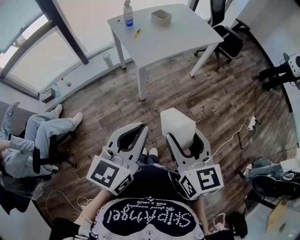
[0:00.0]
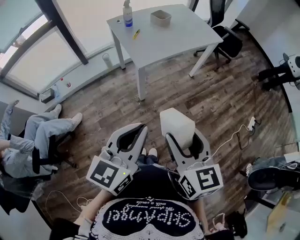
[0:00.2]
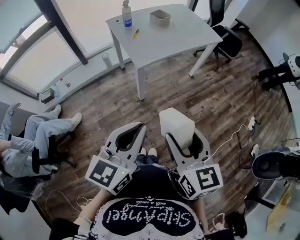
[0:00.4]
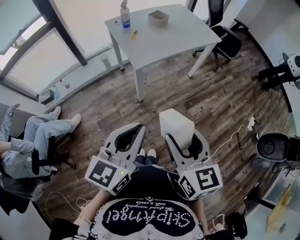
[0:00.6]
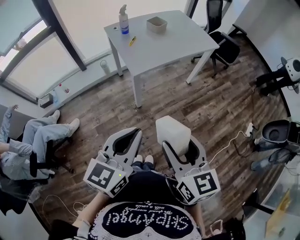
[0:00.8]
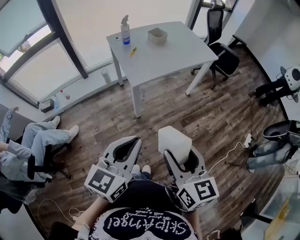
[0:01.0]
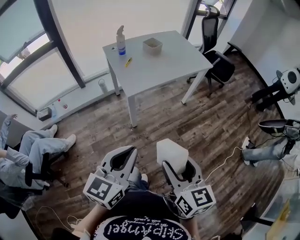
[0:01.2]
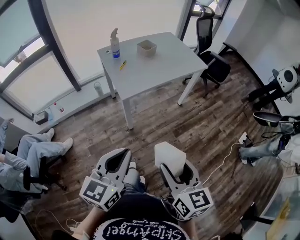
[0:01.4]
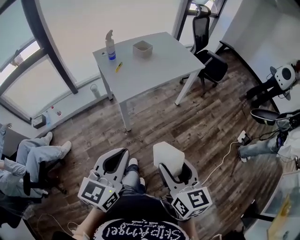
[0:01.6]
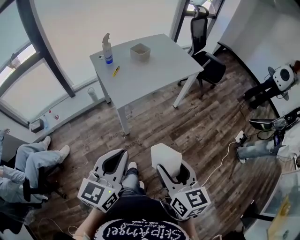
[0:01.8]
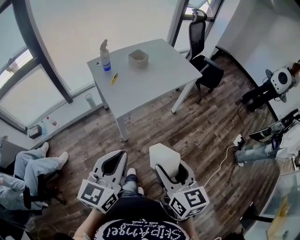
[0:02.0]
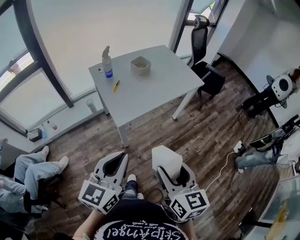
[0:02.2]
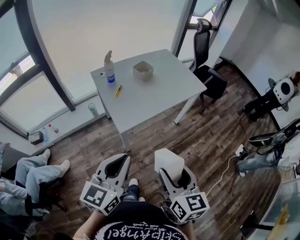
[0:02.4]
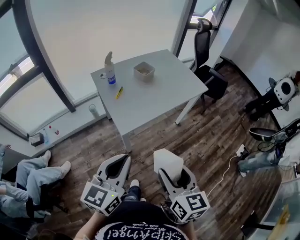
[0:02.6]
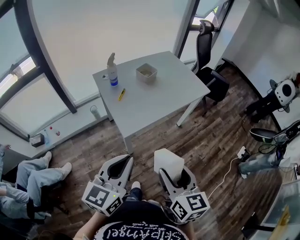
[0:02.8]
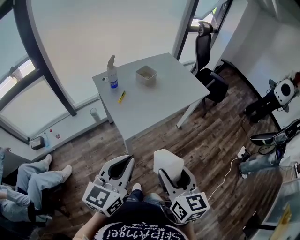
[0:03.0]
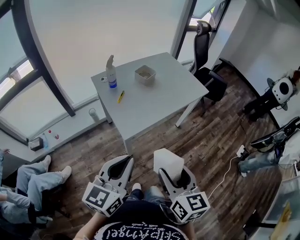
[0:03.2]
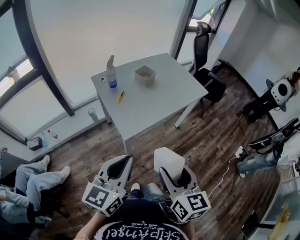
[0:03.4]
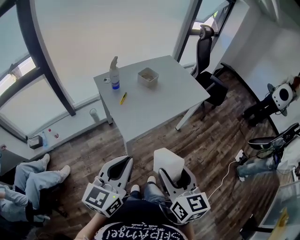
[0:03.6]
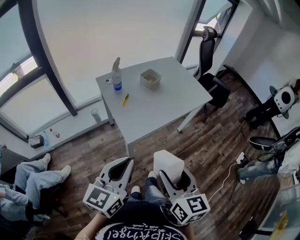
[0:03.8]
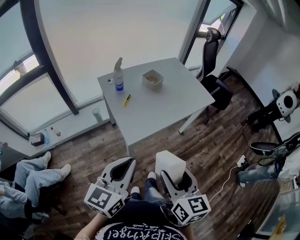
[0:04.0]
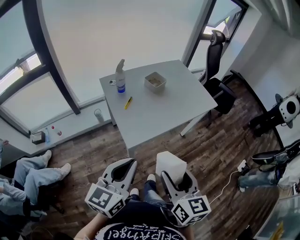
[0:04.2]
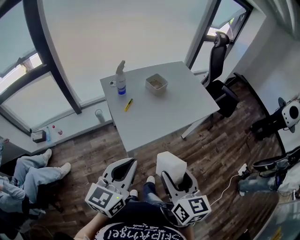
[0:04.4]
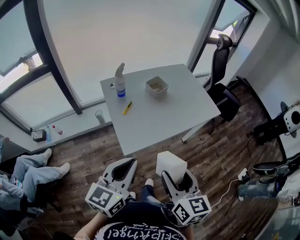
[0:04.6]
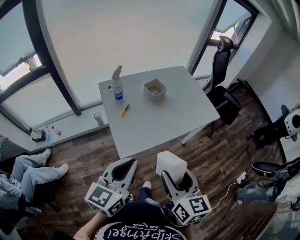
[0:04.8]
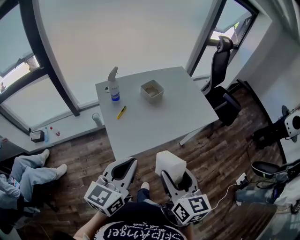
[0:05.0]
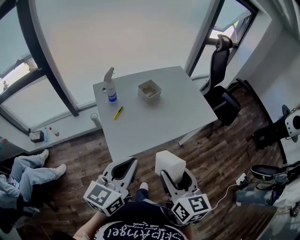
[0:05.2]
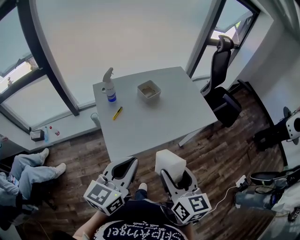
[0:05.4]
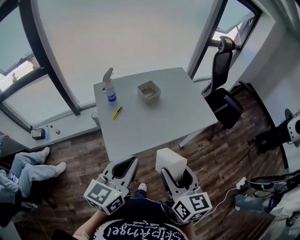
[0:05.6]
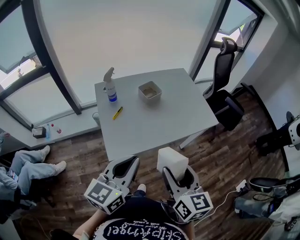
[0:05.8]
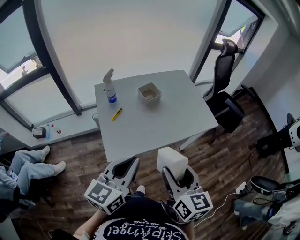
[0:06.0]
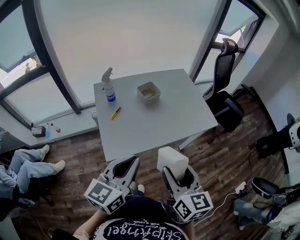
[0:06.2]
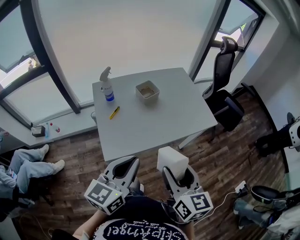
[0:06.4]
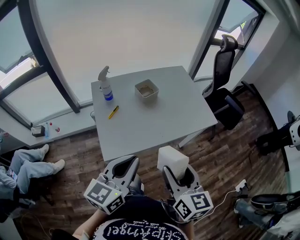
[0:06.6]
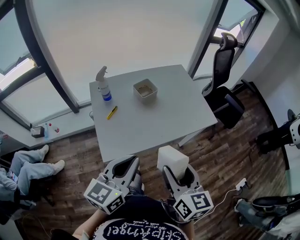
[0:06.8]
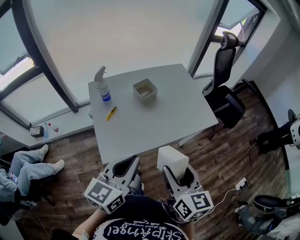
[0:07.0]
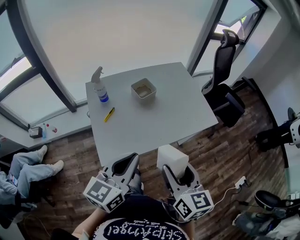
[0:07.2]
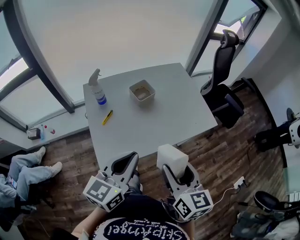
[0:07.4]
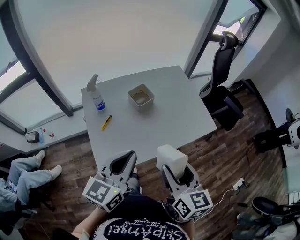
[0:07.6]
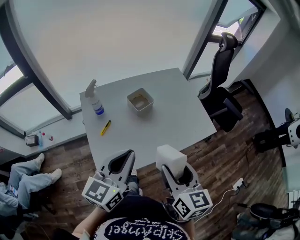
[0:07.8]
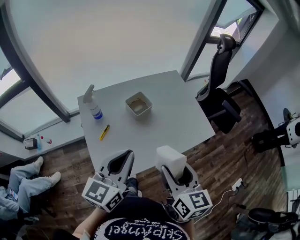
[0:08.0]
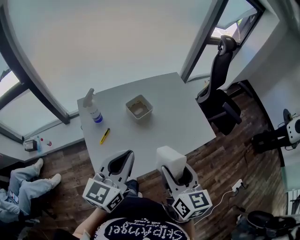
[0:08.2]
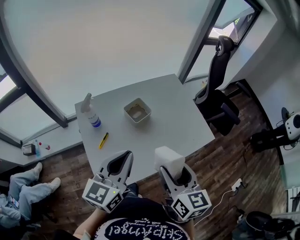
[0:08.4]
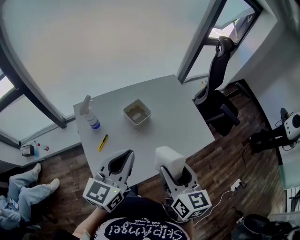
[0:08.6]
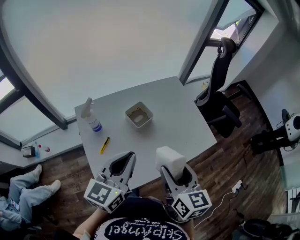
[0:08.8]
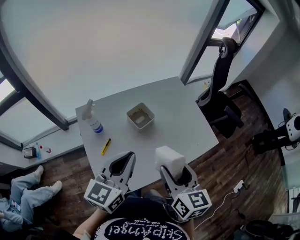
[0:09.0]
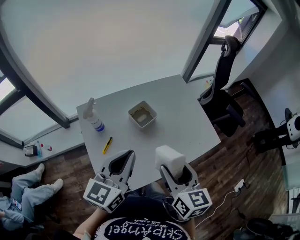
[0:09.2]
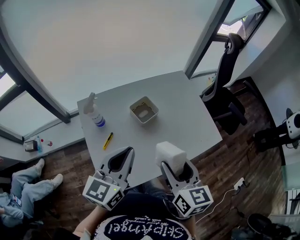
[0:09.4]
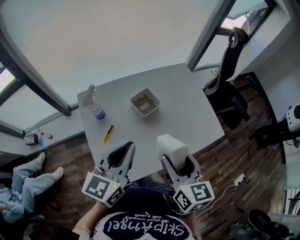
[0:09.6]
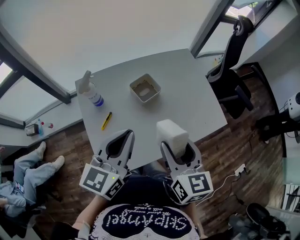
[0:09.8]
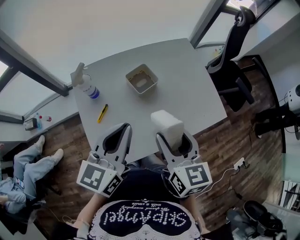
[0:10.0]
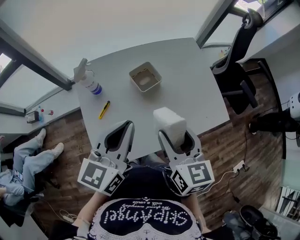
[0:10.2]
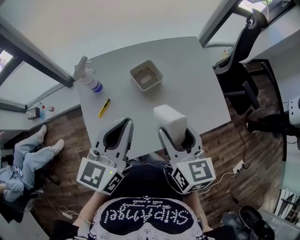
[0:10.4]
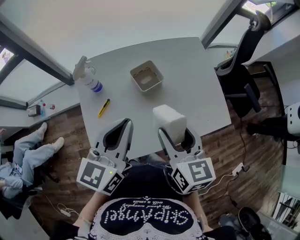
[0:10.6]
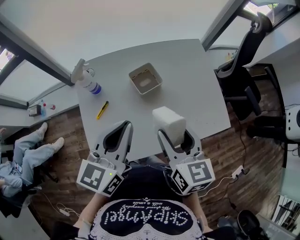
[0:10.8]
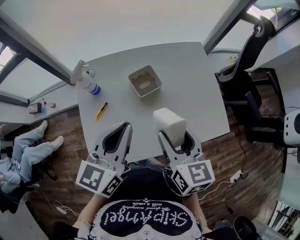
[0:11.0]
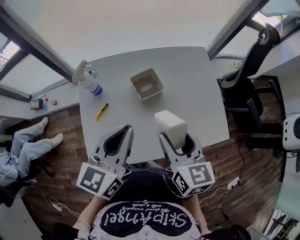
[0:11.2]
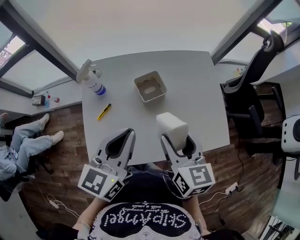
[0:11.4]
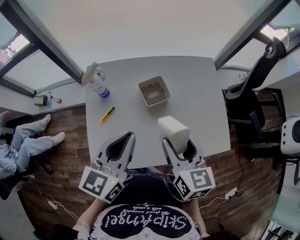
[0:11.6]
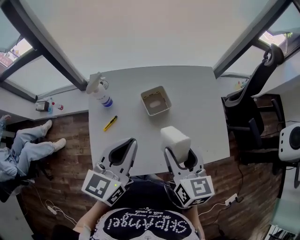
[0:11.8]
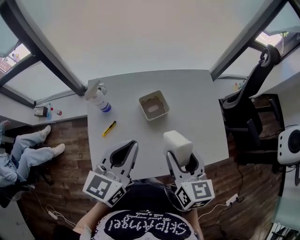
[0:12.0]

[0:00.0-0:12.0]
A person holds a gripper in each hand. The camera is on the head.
0:00.0 to 0:01.6: The left gripper moves roughly 5 cm. Meanwhile the right gripper is displaced to the right by some 10 cm.
0:01.6 to 0:03.0: The right gripper shifts roughly 15 cm forward and to the left; the left gripper goes some 15 cm forward.
0:03.0 to 0:04.4: Both grippers move forward, some 5 cm.
0:04.4 to 0:06.0: The right gripper travels forward and to the right by about 15 cm. The left gripper goes about 15 cm to the right and forward.
0:06.0 to 0:07.6: Both grippers move forward, roughly 10 cm.
0:07.6 to 0:09.0: Both grippers travel together forward, roughly 10 cm.
0:09.0 to 0:10.4: The right gripper ends up roughly 5 cm from where it was.
0:10.4 to 0:12.0: The right gripper changes place by about 5 cm.

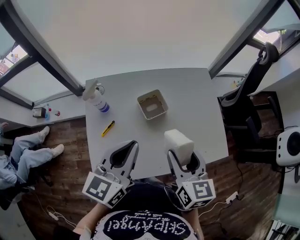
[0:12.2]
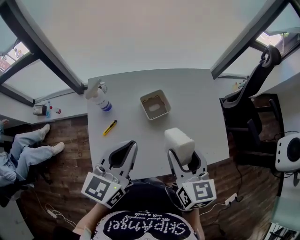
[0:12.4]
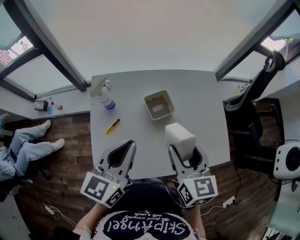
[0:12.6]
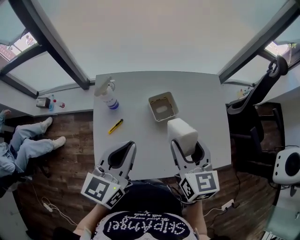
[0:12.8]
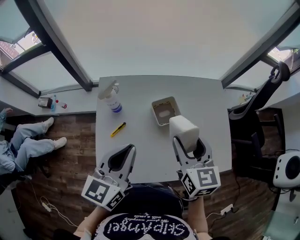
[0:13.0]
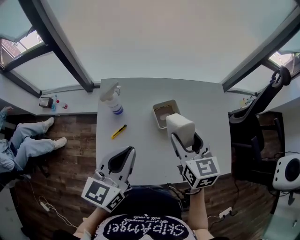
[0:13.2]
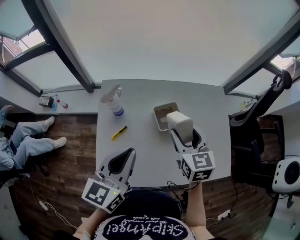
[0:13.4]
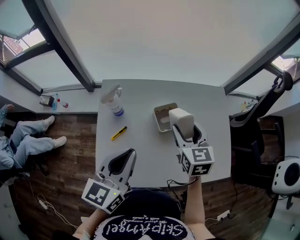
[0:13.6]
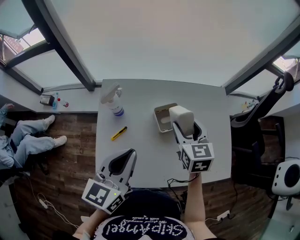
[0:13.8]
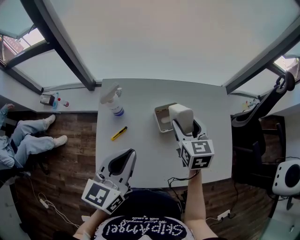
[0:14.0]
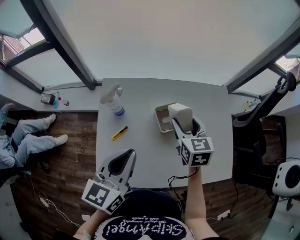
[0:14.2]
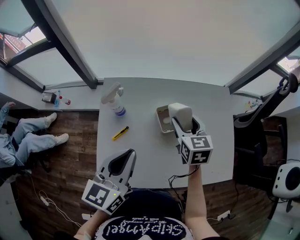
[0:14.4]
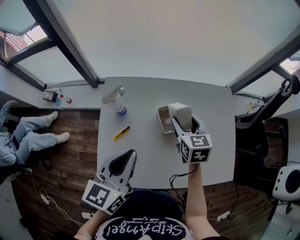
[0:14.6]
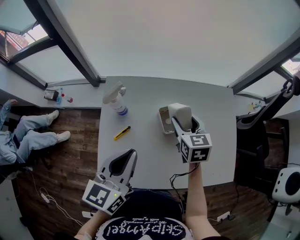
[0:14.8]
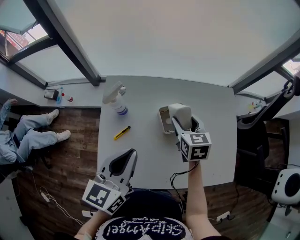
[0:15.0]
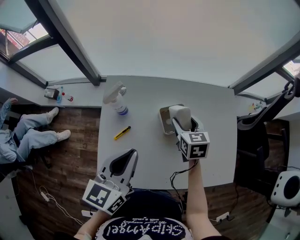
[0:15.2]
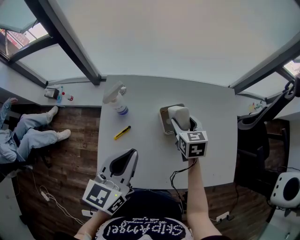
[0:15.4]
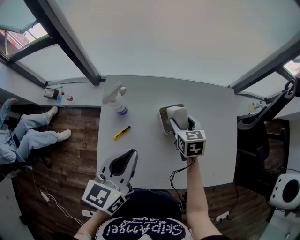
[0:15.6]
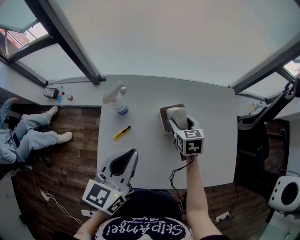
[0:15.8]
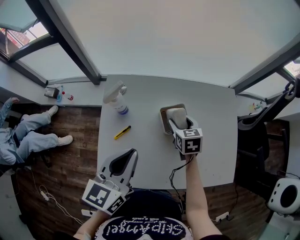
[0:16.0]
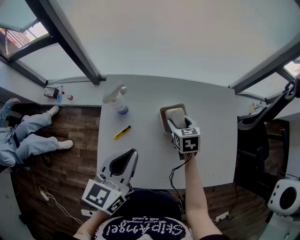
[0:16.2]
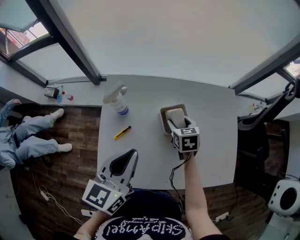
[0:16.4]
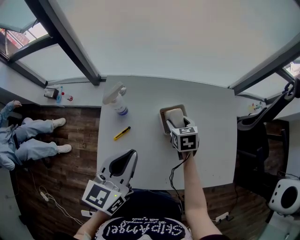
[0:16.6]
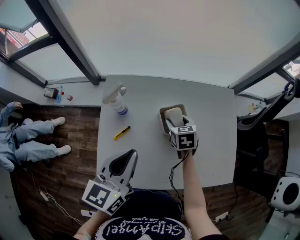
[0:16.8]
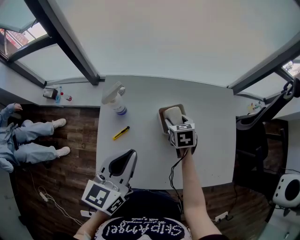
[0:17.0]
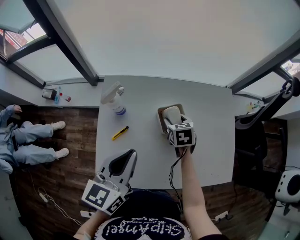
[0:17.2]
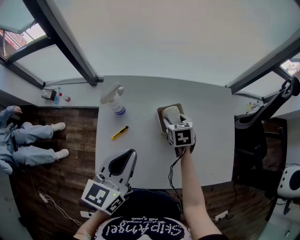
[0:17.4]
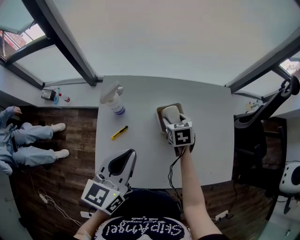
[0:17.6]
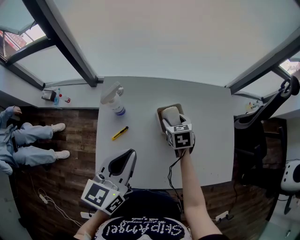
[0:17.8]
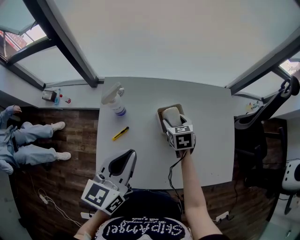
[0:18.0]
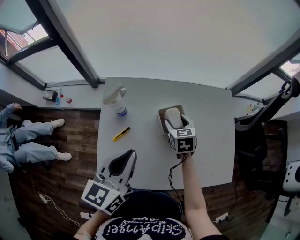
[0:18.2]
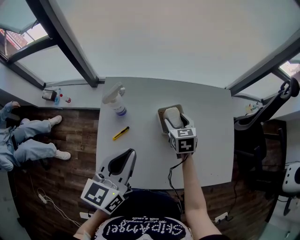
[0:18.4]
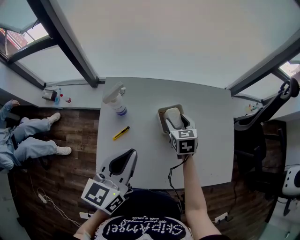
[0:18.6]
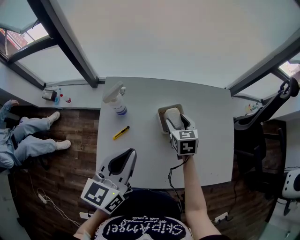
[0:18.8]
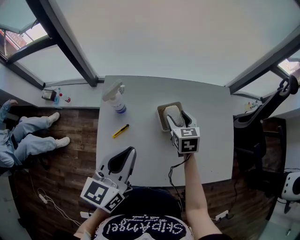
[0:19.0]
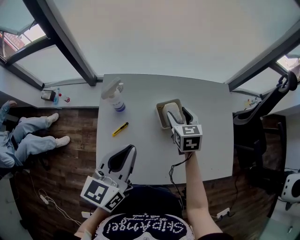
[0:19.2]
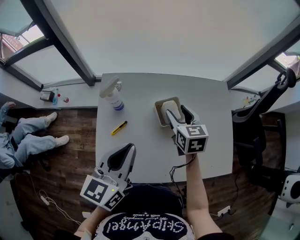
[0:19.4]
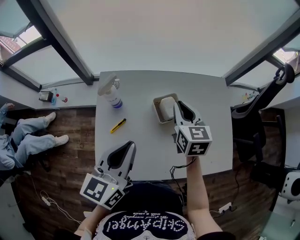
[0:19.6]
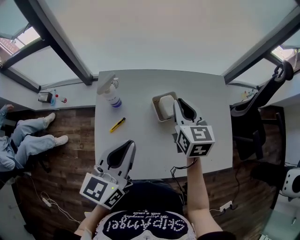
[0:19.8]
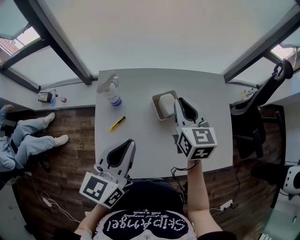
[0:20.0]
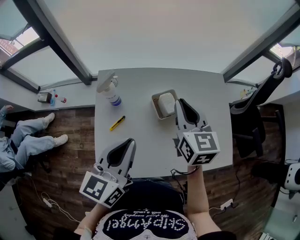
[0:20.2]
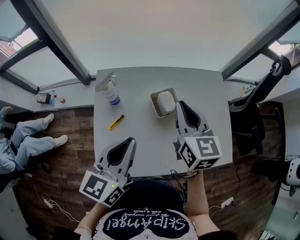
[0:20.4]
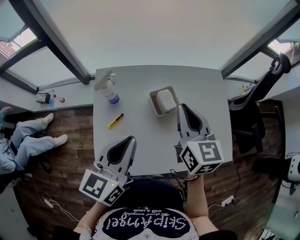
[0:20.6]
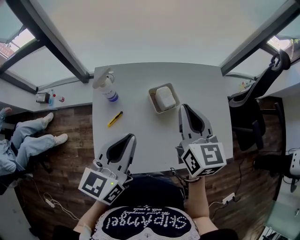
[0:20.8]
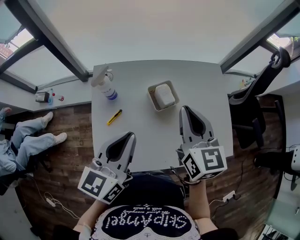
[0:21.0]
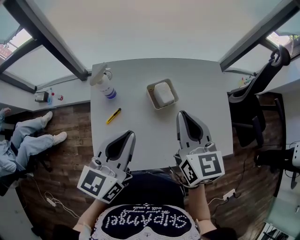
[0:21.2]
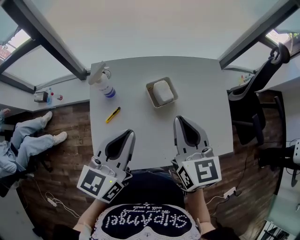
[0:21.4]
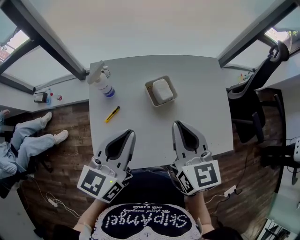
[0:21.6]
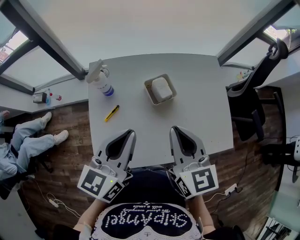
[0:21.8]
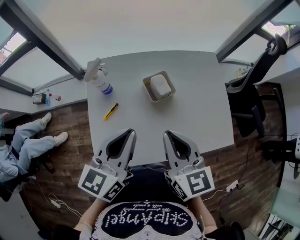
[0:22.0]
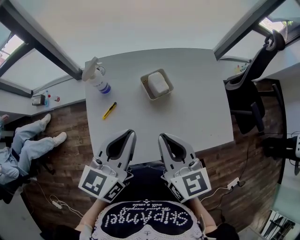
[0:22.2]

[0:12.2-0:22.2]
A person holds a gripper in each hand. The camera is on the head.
0:12.2 to 0:13.6: The left gripper shifts some 5 cm to the left. Meanwhile the right gripper heads forward, covering about 15 cm.
0:13.6 to 0:15.0: The right gripper shifts approximately 10 cm downward and forward.
0:15.0 to 0:16.4: The right gripper shifts roughly 10 cm downward.
0:16.4 to 0:18.0: The two grippers keep their place.
0:18.0 to 0:19.4: The right gripper heads upward, covering approximately 10 cm.
0:19.4 to 0:20.8: The right gripper moves upward and backward, about 15 cm, and closes.
0:20.8 to 0:22.2: The right gripper travels backward by some 15 cm.

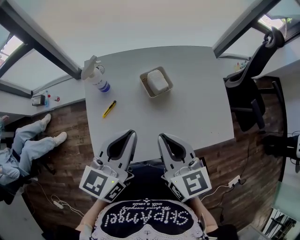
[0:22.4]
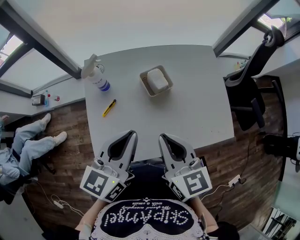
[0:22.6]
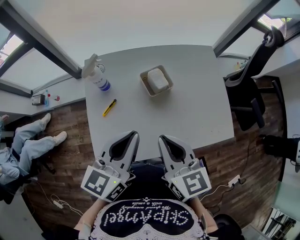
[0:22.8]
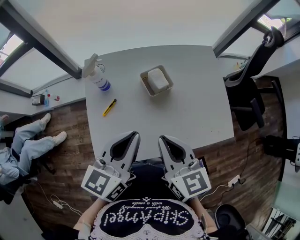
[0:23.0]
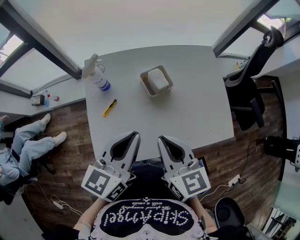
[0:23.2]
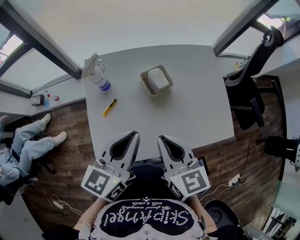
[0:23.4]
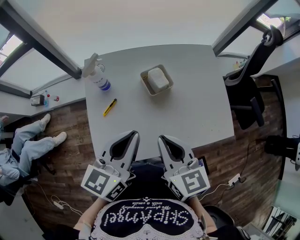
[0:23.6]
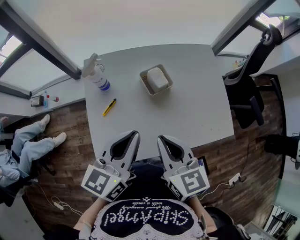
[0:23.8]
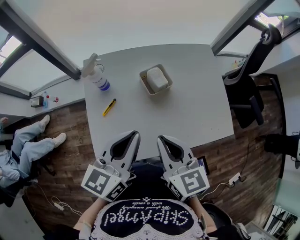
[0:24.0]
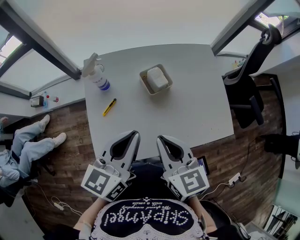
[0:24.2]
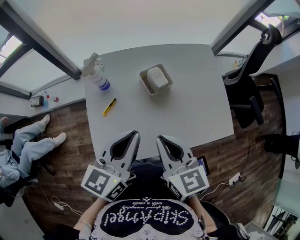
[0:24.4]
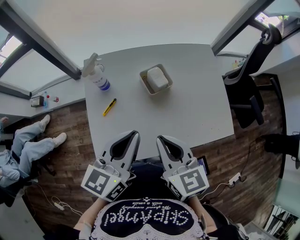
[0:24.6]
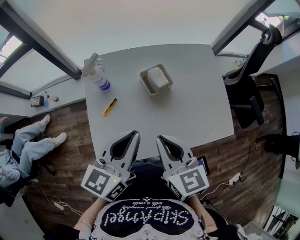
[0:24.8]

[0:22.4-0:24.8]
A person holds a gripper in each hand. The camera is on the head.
0:22.4 to 0:23.6: The grippers make only small movements.
0:23.6 to 0:24.8: Neither gripper changes place.
